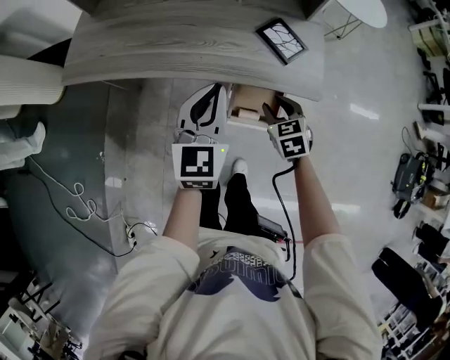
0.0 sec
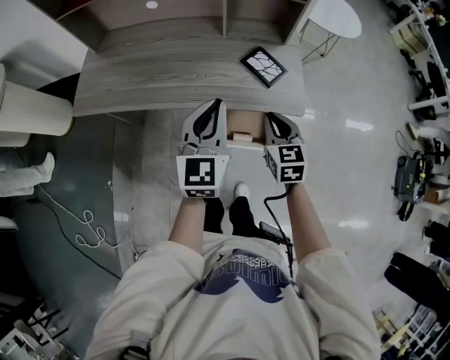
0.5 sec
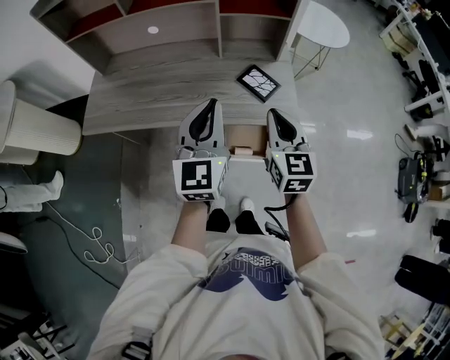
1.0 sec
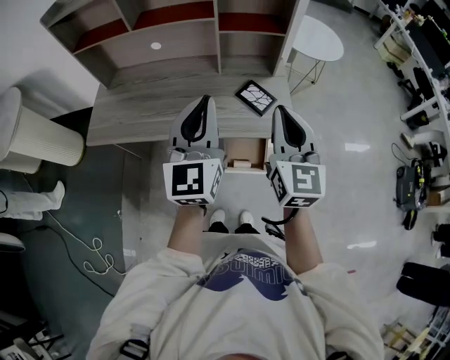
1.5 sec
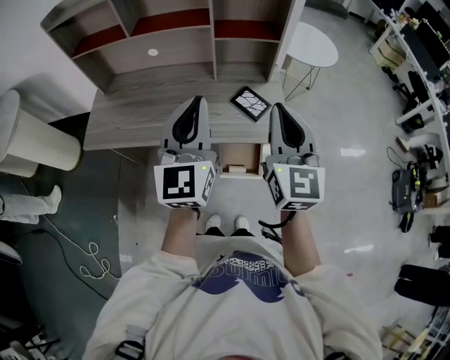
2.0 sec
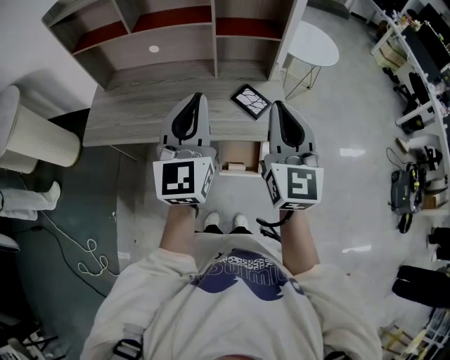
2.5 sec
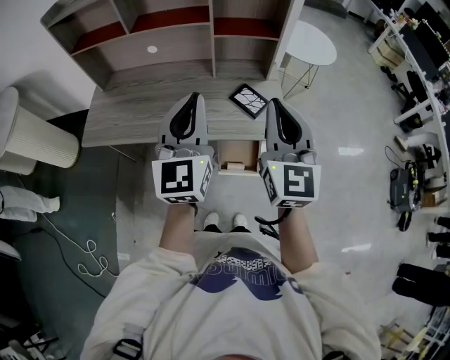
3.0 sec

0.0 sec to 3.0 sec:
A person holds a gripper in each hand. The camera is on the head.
0.0 sec to 1.5 sec: The right gripper heads upward, covering some 35 cm, angles its fingers upward, by approximately 50 degrees, and closes. The left gripper travels upward by approximately 20 cm, and turns by some 20 degrees.
1.5 sec to 3.0 sec: There are only small adjustments of the grippers.

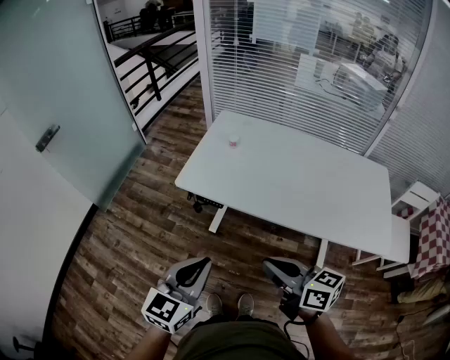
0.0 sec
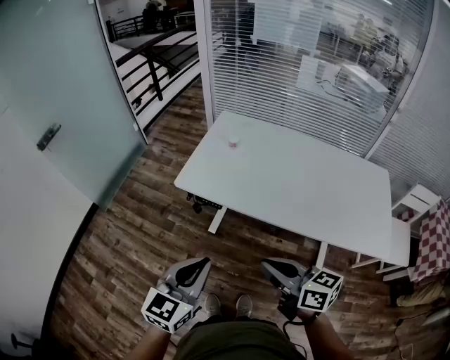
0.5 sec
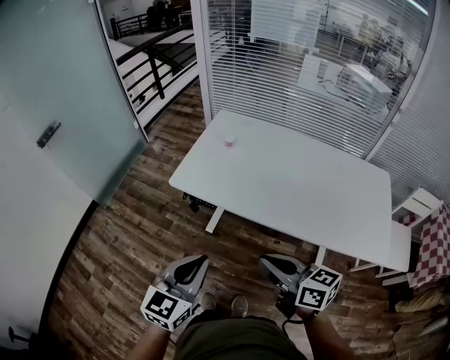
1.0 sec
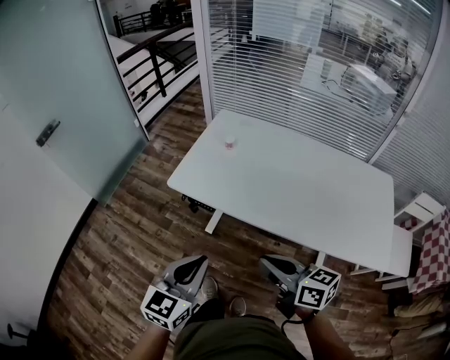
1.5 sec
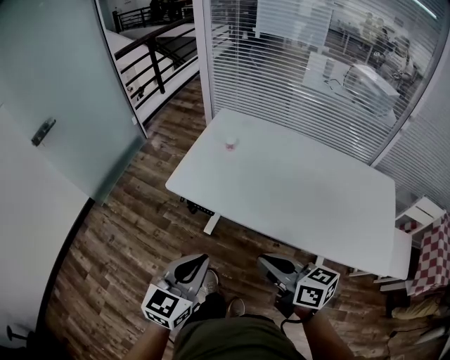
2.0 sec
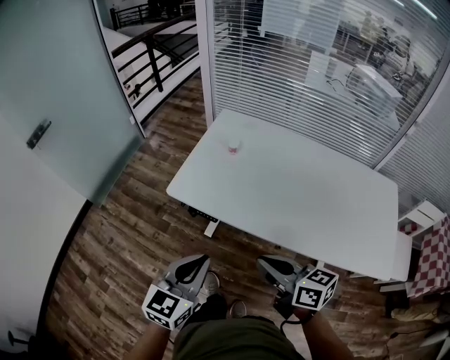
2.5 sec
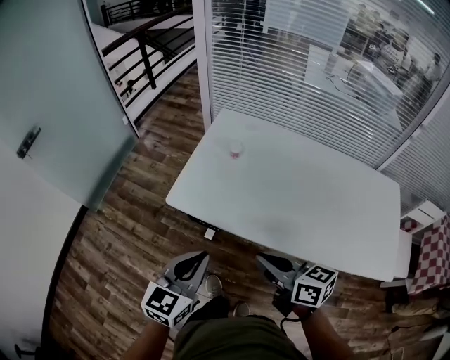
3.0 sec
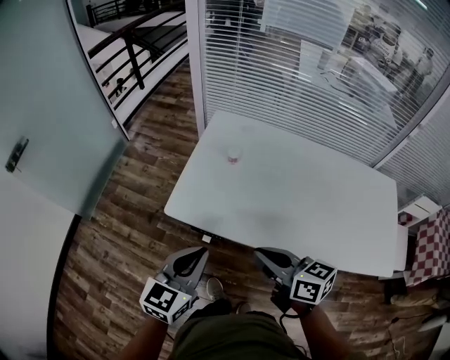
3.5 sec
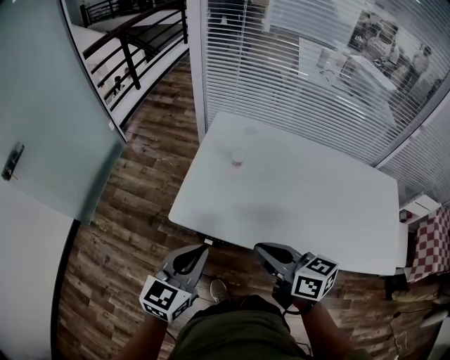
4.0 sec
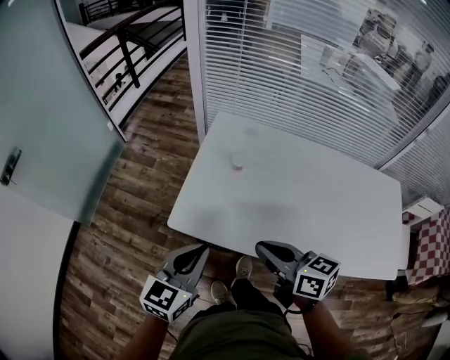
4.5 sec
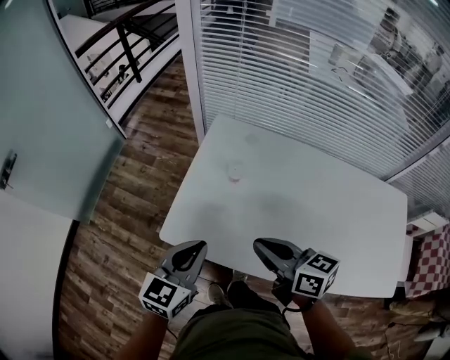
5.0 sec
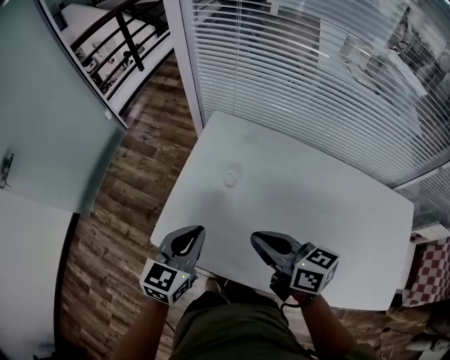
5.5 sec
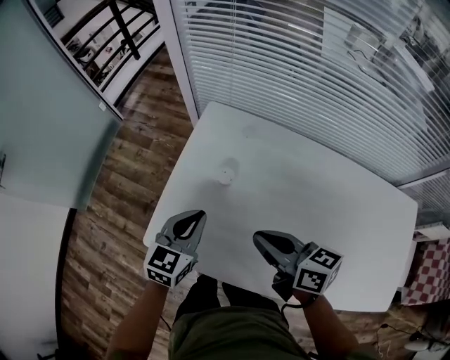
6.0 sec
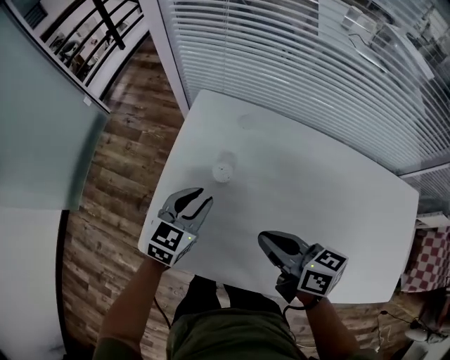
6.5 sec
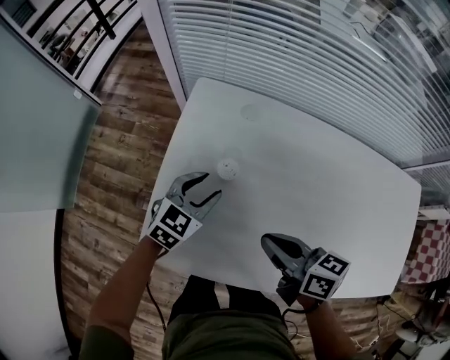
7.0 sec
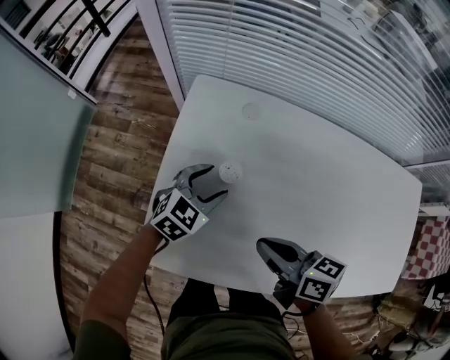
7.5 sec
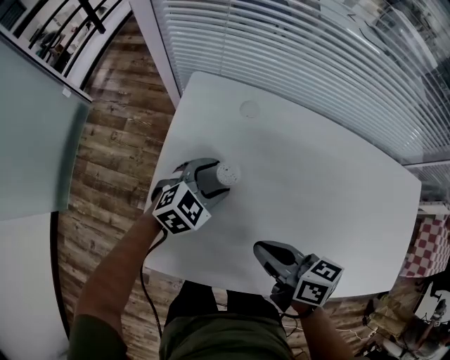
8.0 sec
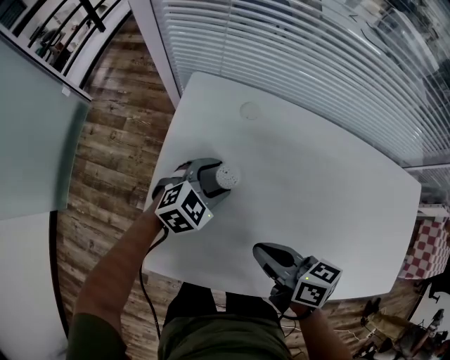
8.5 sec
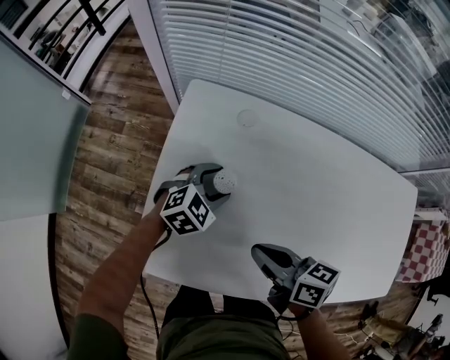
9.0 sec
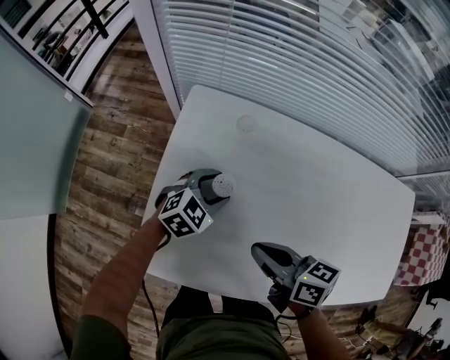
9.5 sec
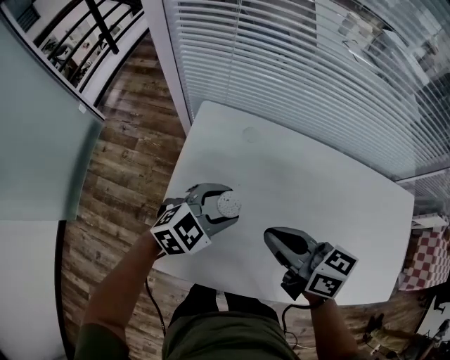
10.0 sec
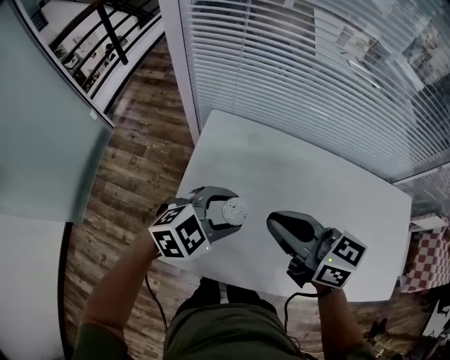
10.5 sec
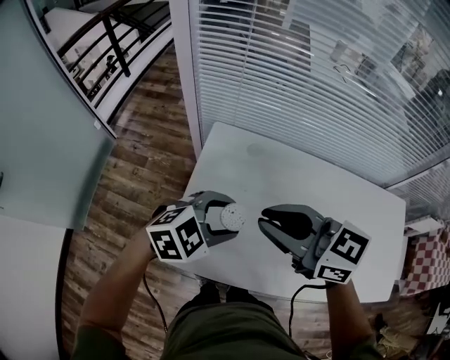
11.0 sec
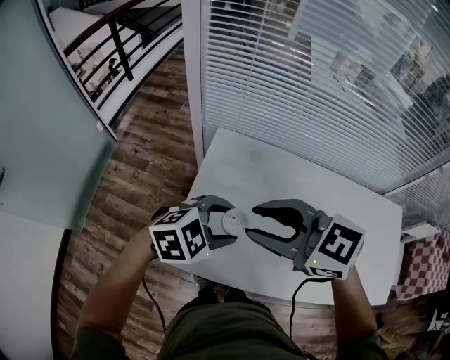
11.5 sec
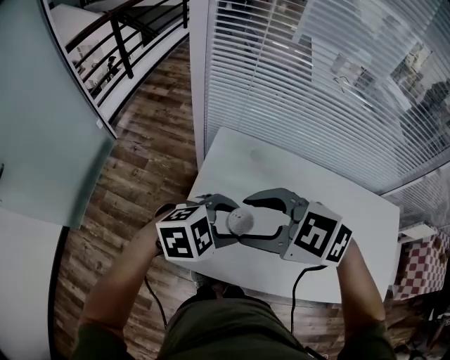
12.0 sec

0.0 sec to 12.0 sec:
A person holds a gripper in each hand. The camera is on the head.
0.0 sec to 2.0 sec: The right gripper heads forward, covering roughly 5 cm, while the left gripper goes approximately 10 cm forward and to the right.
2.0 sec to 4.0 sec: The left gripper travels forward by about 20 cm; the right gripper heads forward and to the left, covering roughly 20 cm.
4.0 sec to 6.0 sec: The left gripper travels forward, to the right and downward by roughly 30 cm, while the right gripper is displaced forward and to the right by roughly 20 cm.
6.0 sec to 8.0 sec: The left gripper heads downward, forward and to the right, covering roughly 20 cm, changes its angle by about 40 degrees, and opens its fingers, while the right gripper heads downward, covering about 10 cm.
8.0 sec to 10.0 sec: The left gripper is displaced upward by some 10 cm. Meanwhile the right gripper travels upward and forward by some 10 cm.
10.0 sec to 12.0 sec: The left gripper shifts roughly 10 cm upward, while the right gripper ends up roughly 20 cm from where it was, twists about 50 degrees counterclockwise, seen from behind, and opens.

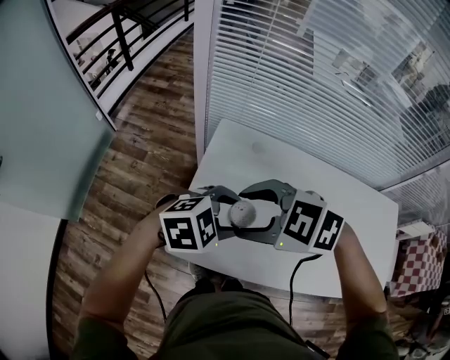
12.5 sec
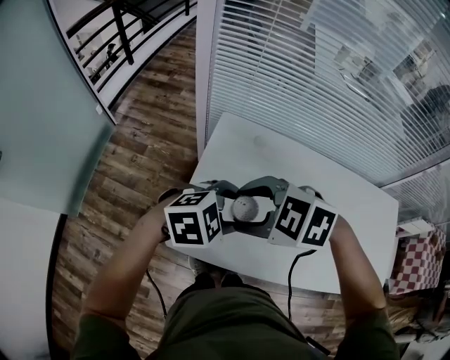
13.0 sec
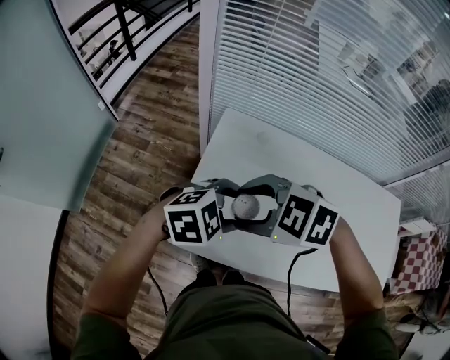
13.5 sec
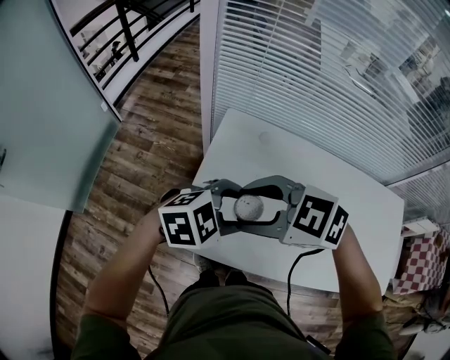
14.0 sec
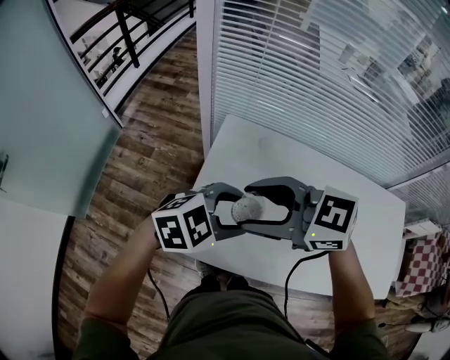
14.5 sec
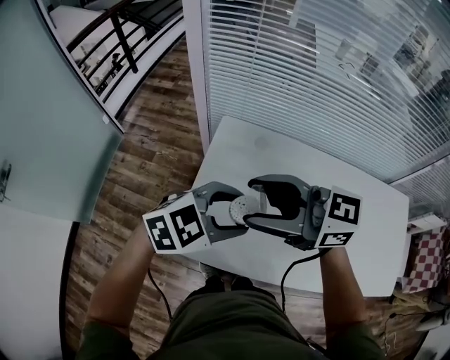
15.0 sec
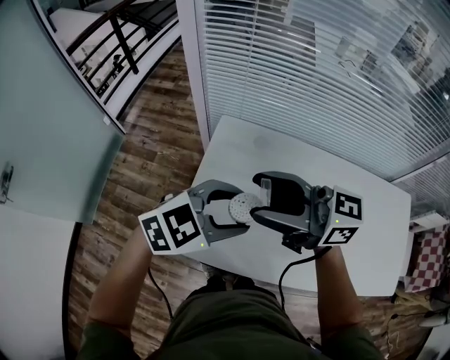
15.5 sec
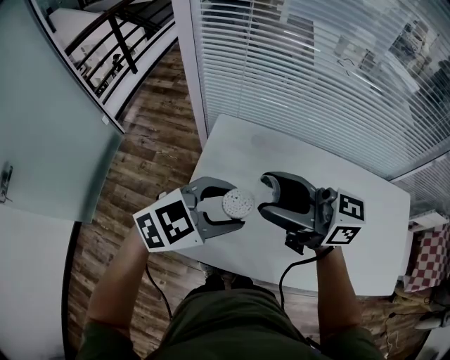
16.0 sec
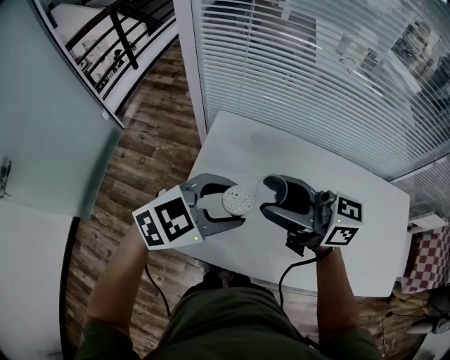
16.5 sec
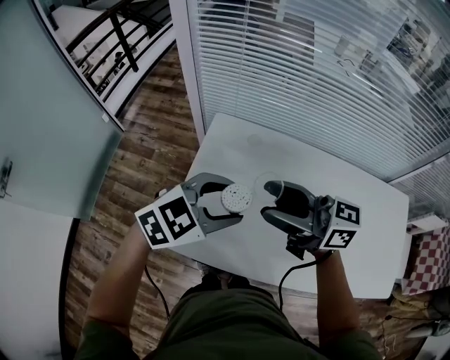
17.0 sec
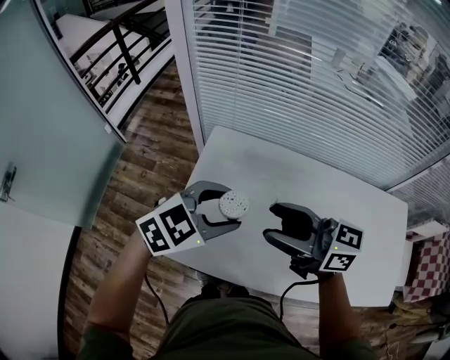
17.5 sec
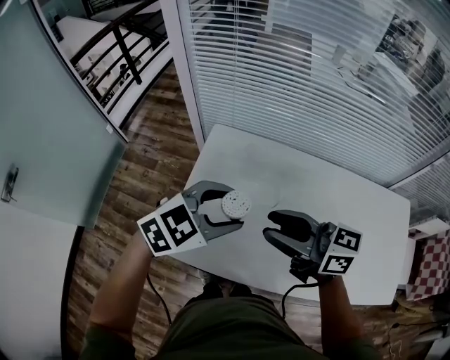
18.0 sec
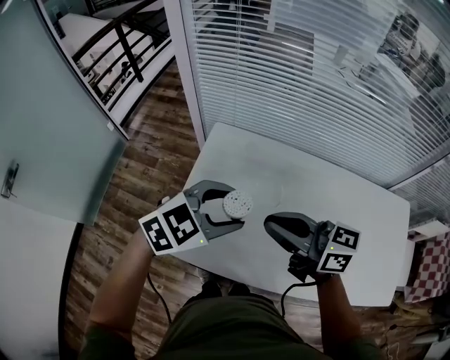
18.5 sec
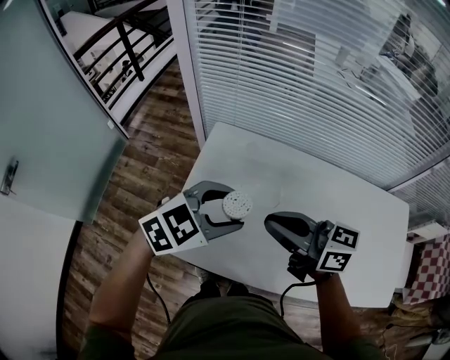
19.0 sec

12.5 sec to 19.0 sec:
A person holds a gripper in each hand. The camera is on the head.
12.5 sec to 14.5 sec: The right gripper swivels approximately 30 degrees.
14.5 sec to 17.0 sec: The right gripper shifts by some 10 cm, and swivels some 40 degrees.
17.0 sec to 19.0 sec: The right gripper closes up.

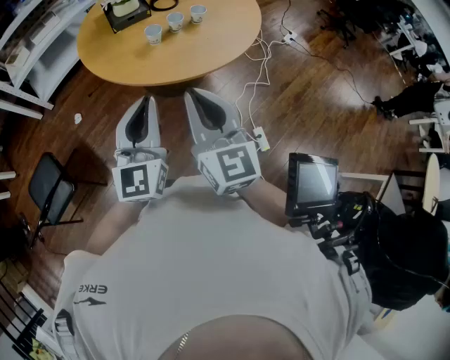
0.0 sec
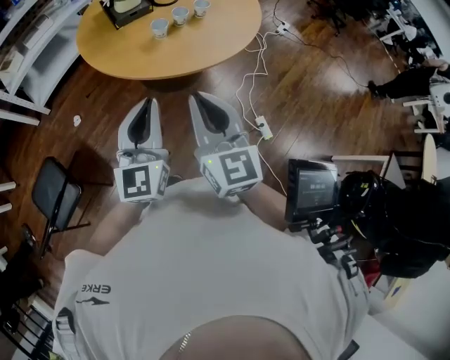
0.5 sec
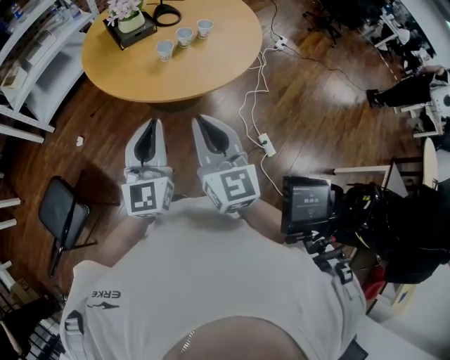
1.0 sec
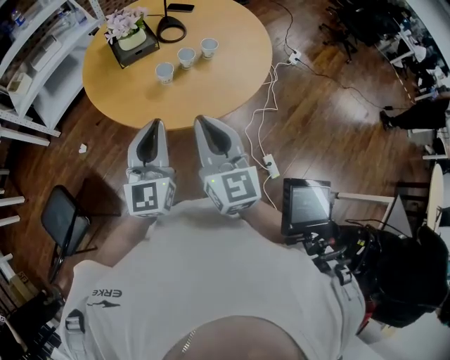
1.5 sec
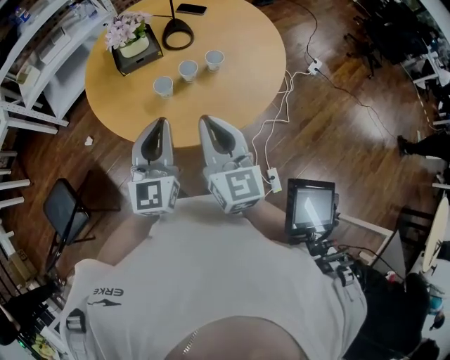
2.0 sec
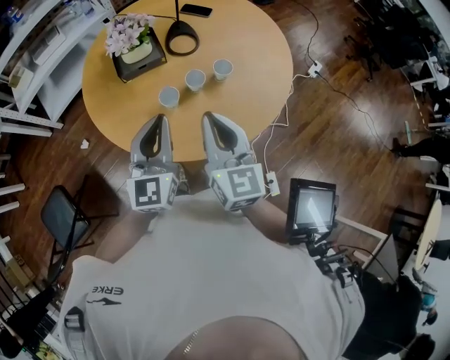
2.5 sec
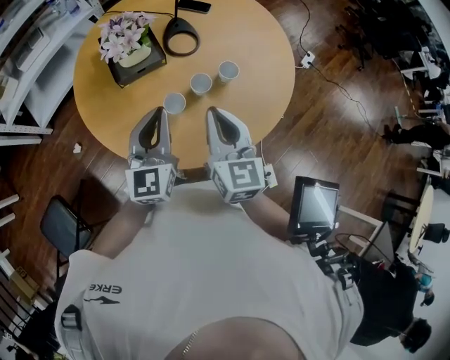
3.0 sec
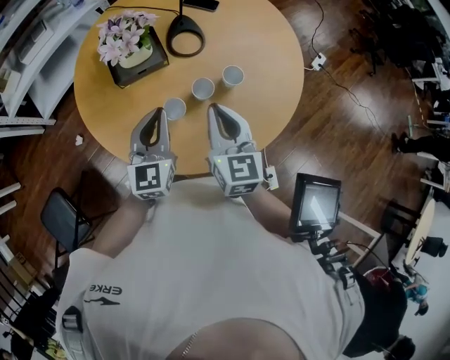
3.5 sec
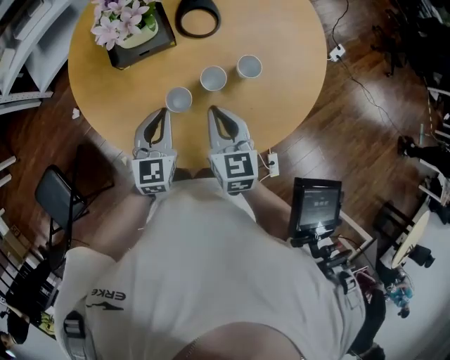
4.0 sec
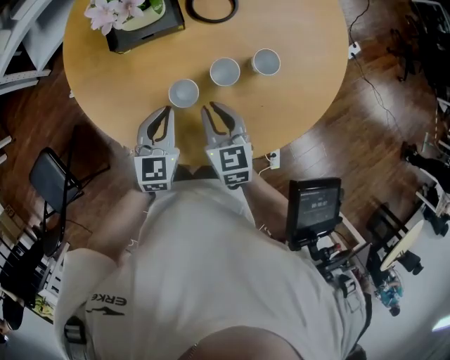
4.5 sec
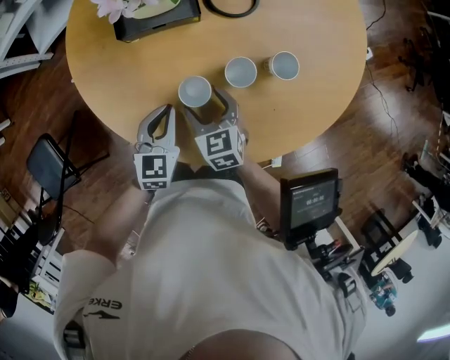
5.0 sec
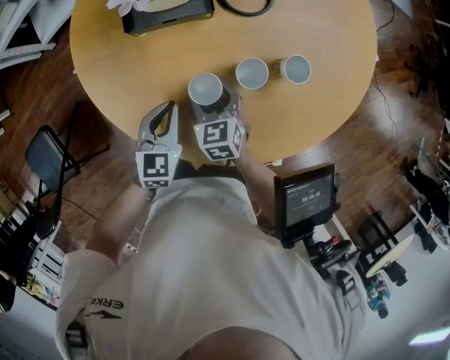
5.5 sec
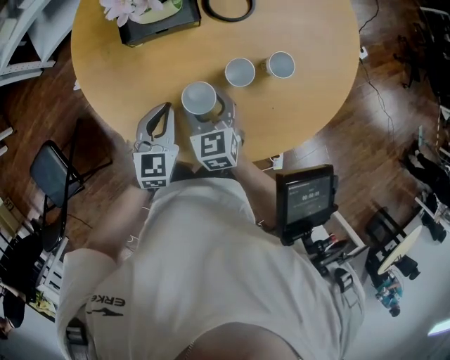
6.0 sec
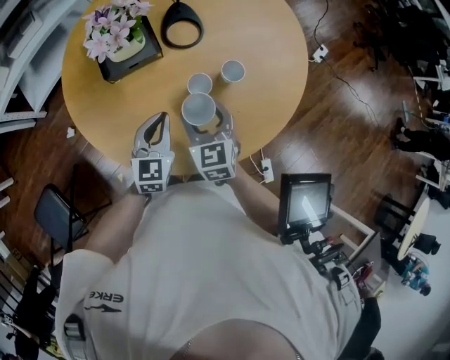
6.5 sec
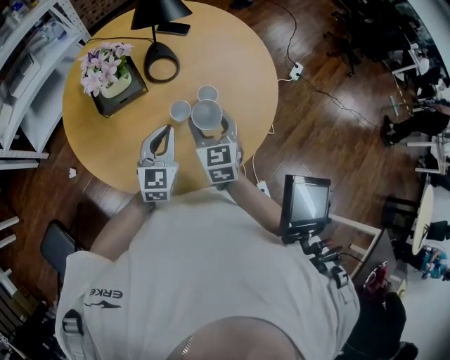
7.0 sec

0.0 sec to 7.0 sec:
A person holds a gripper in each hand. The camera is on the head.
0.0 sec to 2.0 sec: The two grippers go roughly 20 cm forward.
2.0 sec to 3.5 sec: Both grippers move forward and downward, about 20 cm.
3.5 sec to 5.0 sec: The two grippers go approximately 20 cm downward. The right gripper swivels approximately 40 degrees, and opens its fingers. The left gripper turns by about 20 degrees.
5.0 sec to 7.0 sec: Both grippers move upward and to the right, roughly 20 cm. The left gripper turns by some 20 degrees, while the right gripper turns by some 30 degrees.
